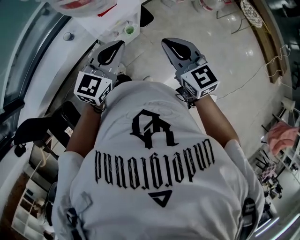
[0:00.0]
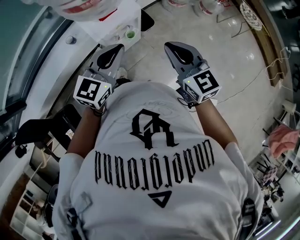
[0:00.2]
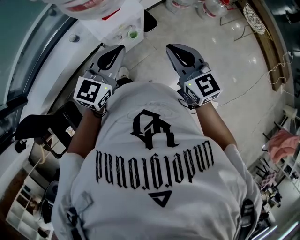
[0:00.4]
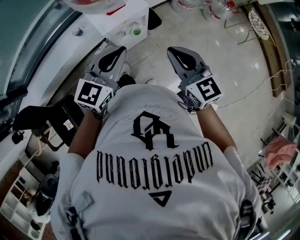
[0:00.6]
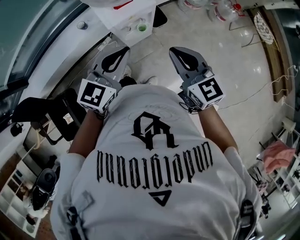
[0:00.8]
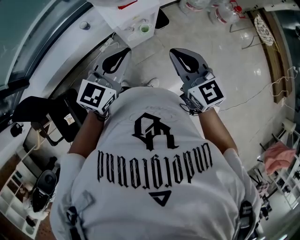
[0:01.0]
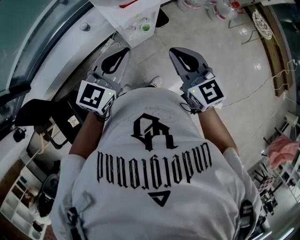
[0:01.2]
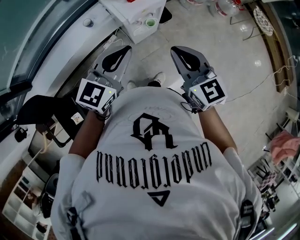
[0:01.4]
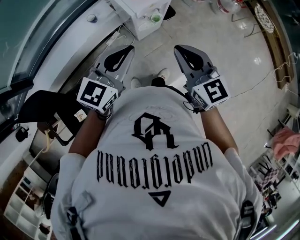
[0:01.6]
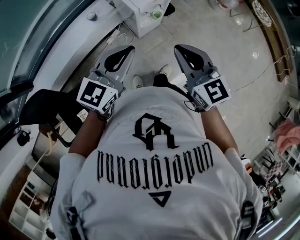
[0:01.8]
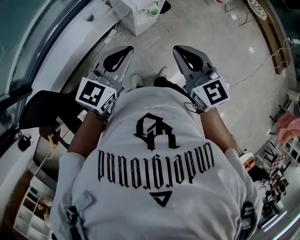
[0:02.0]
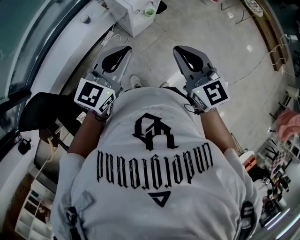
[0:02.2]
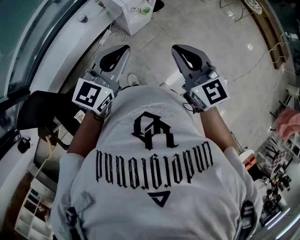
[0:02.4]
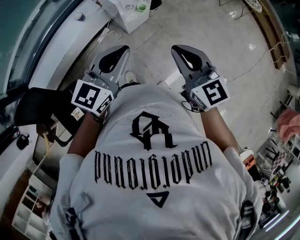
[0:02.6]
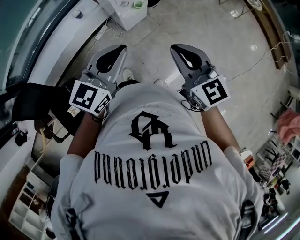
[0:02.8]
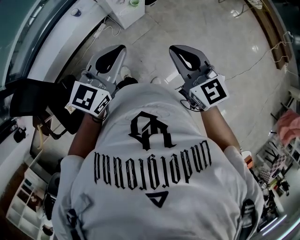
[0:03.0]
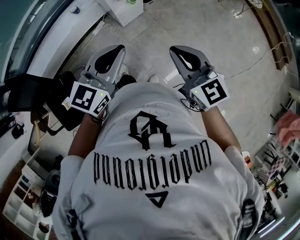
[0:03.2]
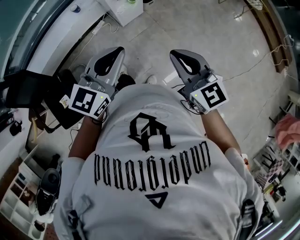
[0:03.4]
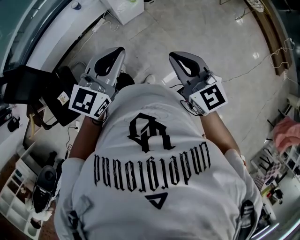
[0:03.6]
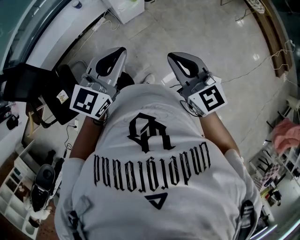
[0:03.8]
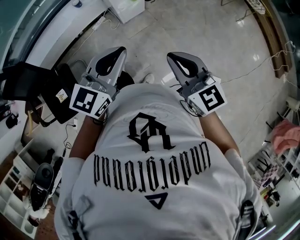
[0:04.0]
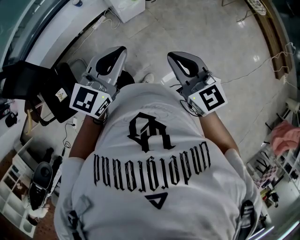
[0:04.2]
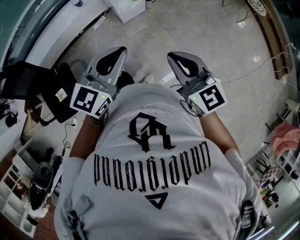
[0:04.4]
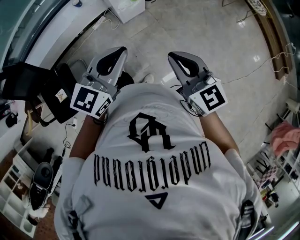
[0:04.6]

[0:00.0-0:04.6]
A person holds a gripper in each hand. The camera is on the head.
0.0 to 1.6 s: Both grippers travel together to the left and backward, some 20 cm.
1.6 to 3.0 s: Both grippers move backward and to the right, roughly 20 cm.
3.0 to 4.6 s: Both grippers move backward and to the right, approximately 10 cm.

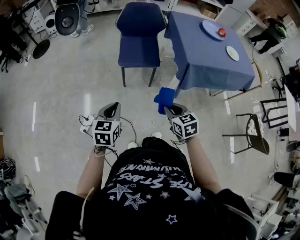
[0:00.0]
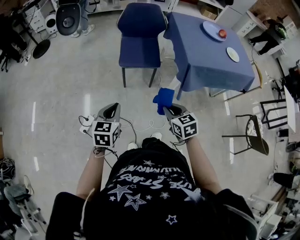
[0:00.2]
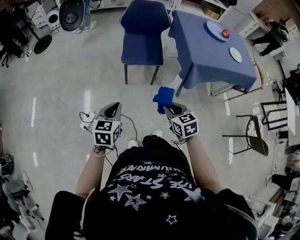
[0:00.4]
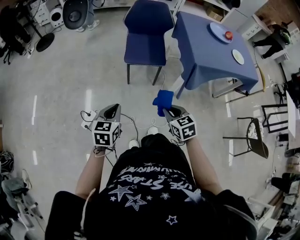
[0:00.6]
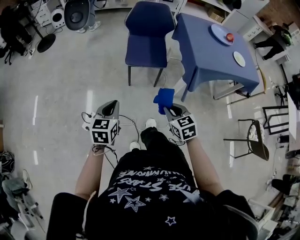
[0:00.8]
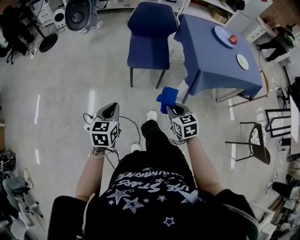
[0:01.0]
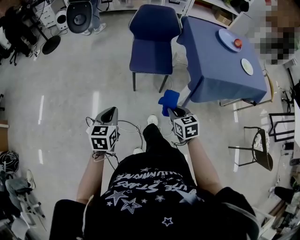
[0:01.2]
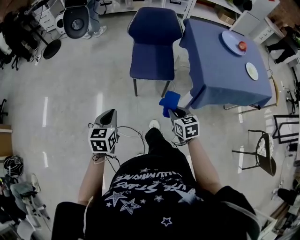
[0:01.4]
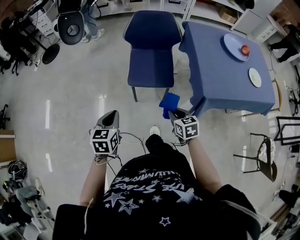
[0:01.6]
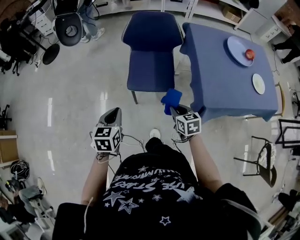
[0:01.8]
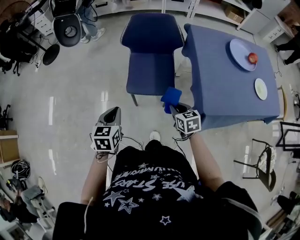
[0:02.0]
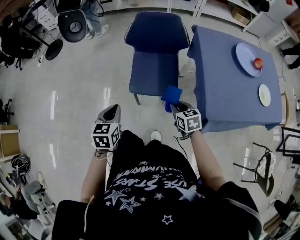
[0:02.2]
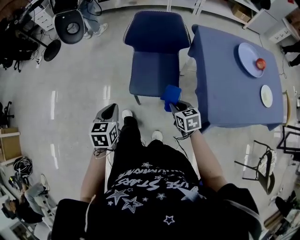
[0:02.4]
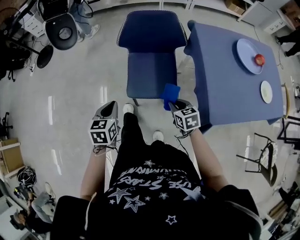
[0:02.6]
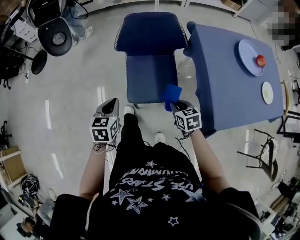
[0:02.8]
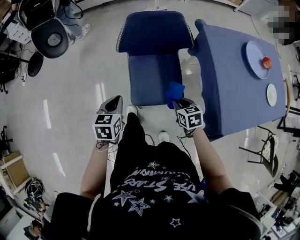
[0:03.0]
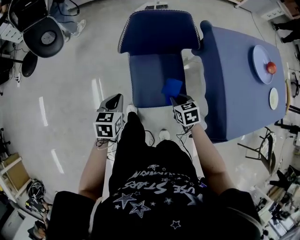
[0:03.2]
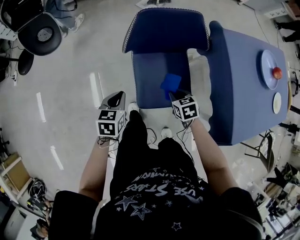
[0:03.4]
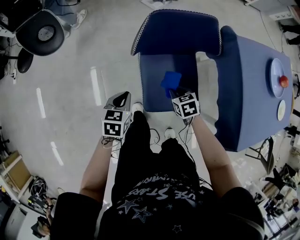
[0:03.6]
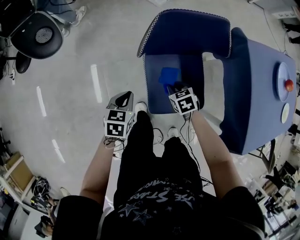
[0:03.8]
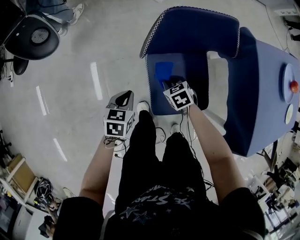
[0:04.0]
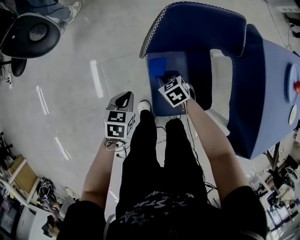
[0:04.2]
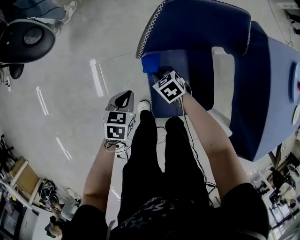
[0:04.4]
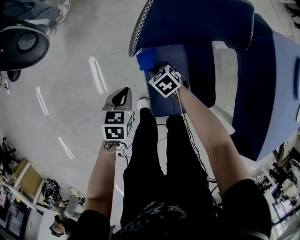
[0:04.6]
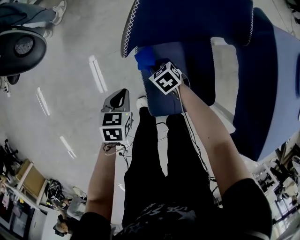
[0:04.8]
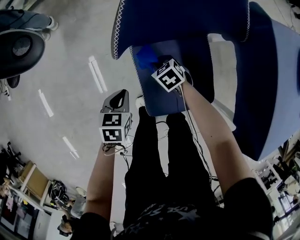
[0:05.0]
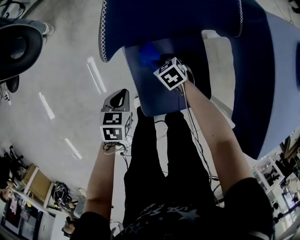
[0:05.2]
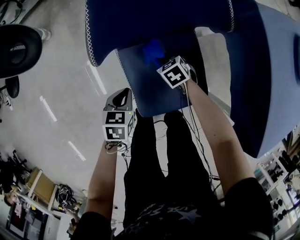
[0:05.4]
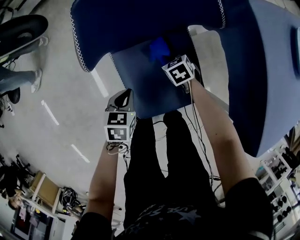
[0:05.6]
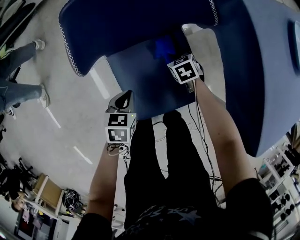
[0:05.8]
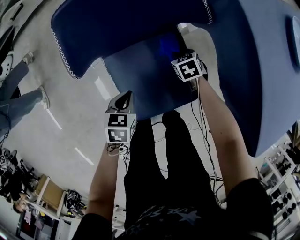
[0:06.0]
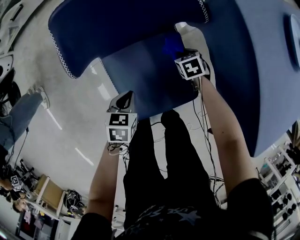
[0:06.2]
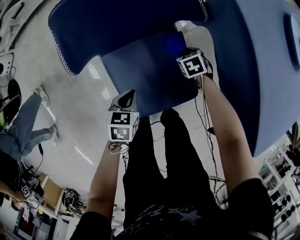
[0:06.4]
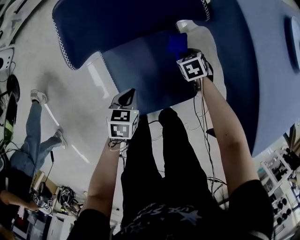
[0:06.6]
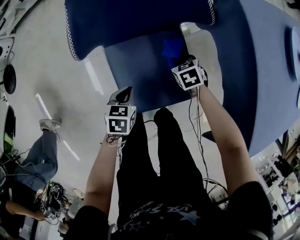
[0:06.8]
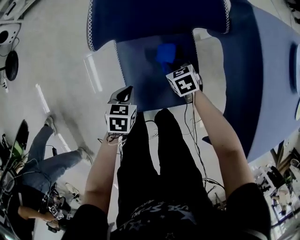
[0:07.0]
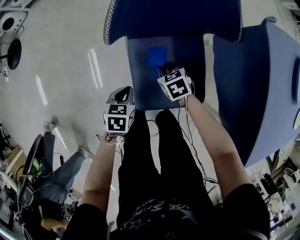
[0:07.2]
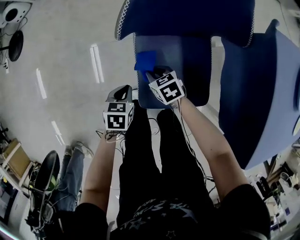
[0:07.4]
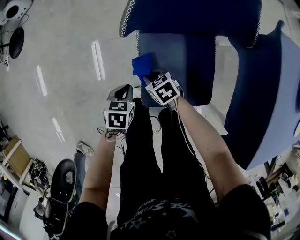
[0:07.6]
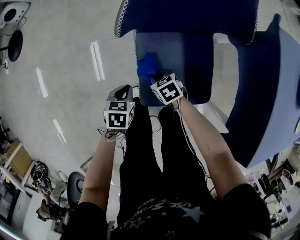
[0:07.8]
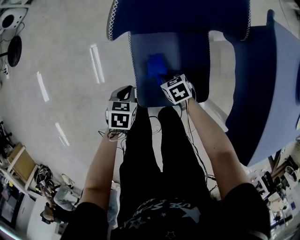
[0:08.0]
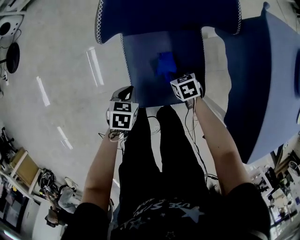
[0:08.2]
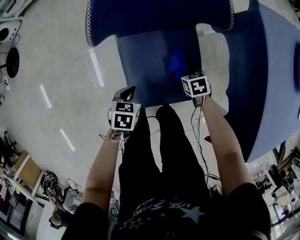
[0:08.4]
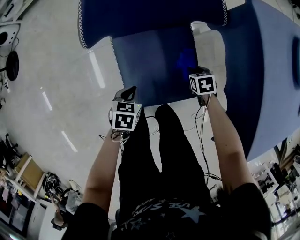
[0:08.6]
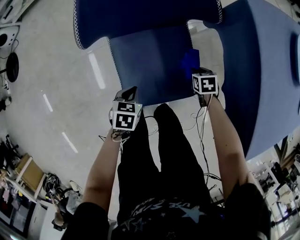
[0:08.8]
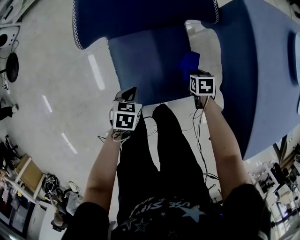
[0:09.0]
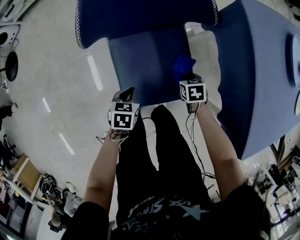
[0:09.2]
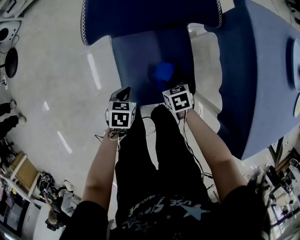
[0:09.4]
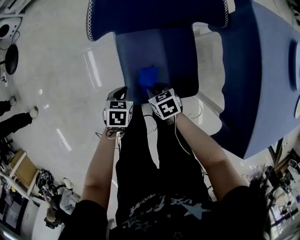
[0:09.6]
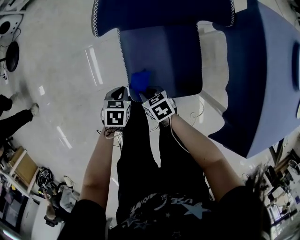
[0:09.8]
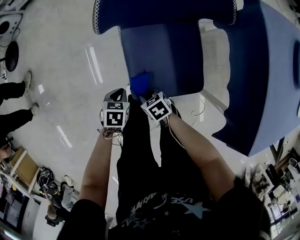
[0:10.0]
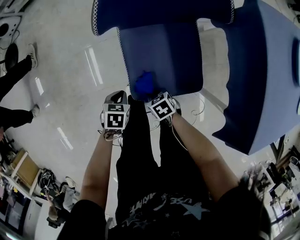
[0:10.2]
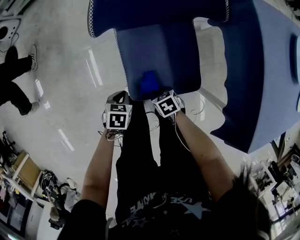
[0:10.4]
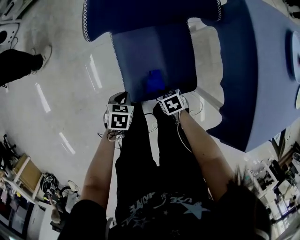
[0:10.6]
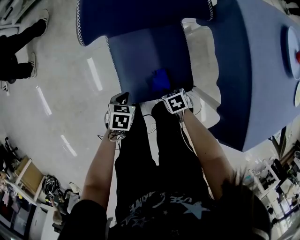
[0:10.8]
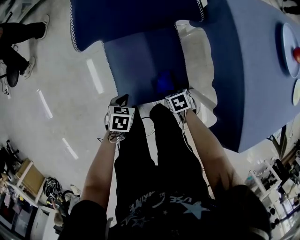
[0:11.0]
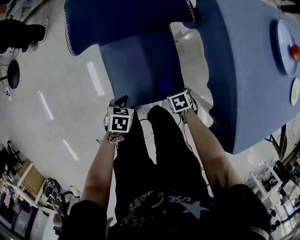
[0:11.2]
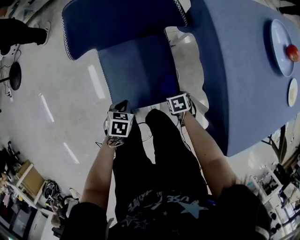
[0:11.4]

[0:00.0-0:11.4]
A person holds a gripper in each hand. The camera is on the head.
0.0 to 1.4 s: The right gripper shifts roughly 15 cm forward and downward. The left gripper shifts about 10 cm forward and to the left.
1.4 to 2.8 s: Both grippers move forward, some 30 cm.
2.8 to 4.2 s: The right gripper heads forward, to the left and downward, covering roughly 40 cm, and rotates approximately 20 degrees. The left gripper moves downward, forward and to the left, about 30 cm.
4.2 to 5.6 s: The two grippers go about 20 cm to the right.
5.6 to 7.2 s: The right gripper changes place by about 15 cm, while the left gripper moves some 5 cm.
7.2 to 8.6 s: The right gripper ends up about 20 cm from where it was, and swivels some 20 degrees, while the left gripper shifts by roughly 5 cm.
8.6 to 10.0 s: The left gripper moves approximately 10 cm, while the right gripper ends up roughly 30 cm from where it was, and changes its angle by some 30 degrees.
10.0 to 11.4 s: The right gripper shifts by roughly 30 cm, and turns by roughly 30 degrees, while the left gripper changes place by about 15 cm.

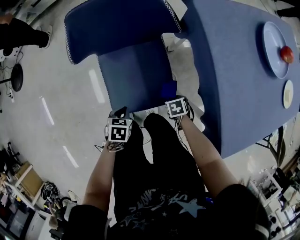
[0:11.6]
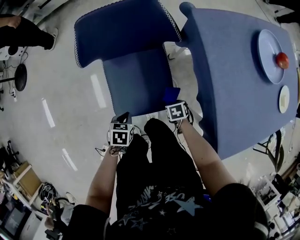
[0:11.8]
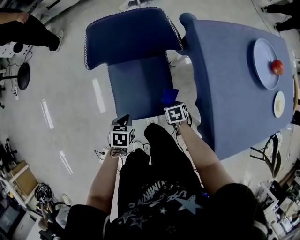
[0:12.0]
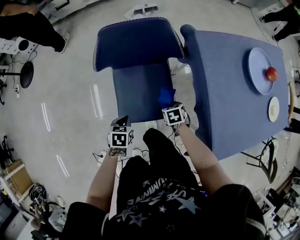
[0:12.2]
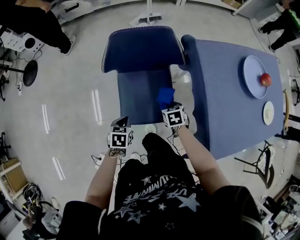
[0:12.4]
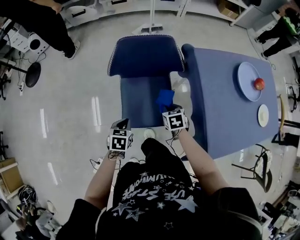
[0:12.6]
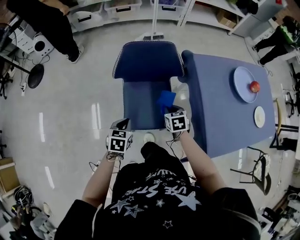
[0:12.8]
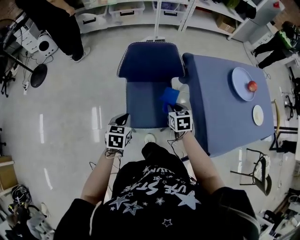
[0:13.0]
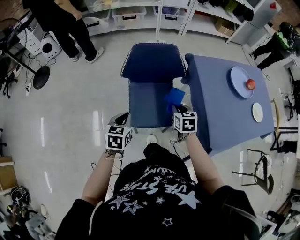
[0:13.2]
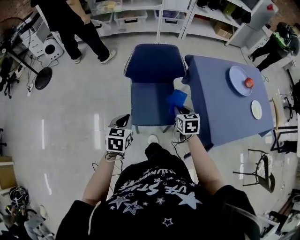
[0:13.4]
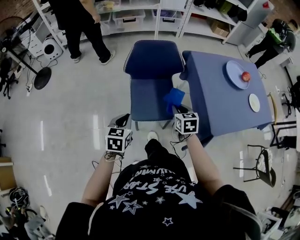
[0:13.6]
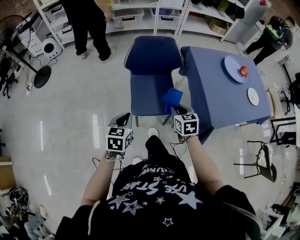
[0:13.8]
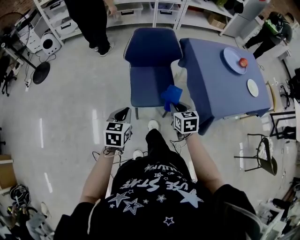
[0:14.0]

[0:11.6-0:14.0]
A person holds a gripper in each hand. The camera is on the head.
11.6 to 12.8 s: Both grippers move upward, some 20 cm. The right gripper turns by about 30 degrees. Meanwhile the left gripper changes its angle by approximately 20 degrees.
12.8 to 14.0 s: Both grippers travel together backward and upward, roughly 20 cm.

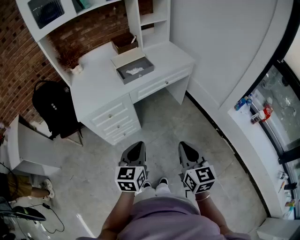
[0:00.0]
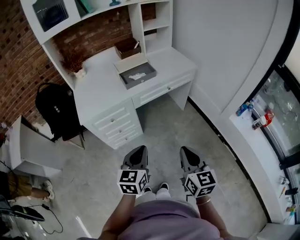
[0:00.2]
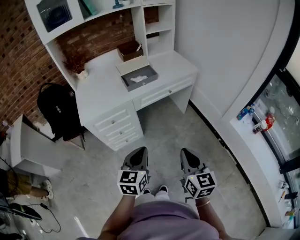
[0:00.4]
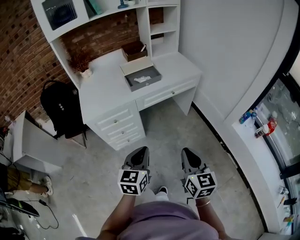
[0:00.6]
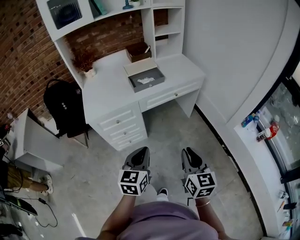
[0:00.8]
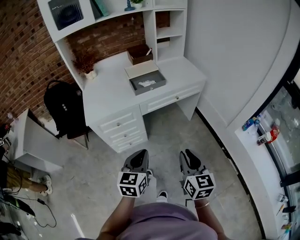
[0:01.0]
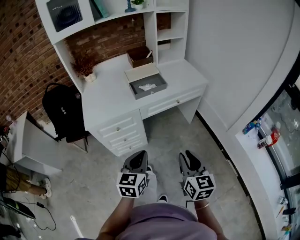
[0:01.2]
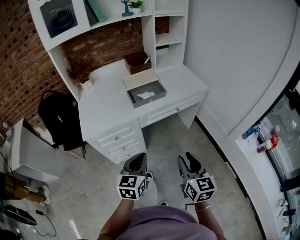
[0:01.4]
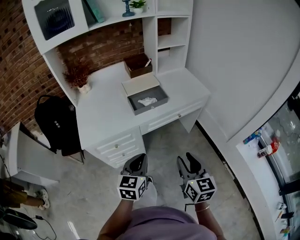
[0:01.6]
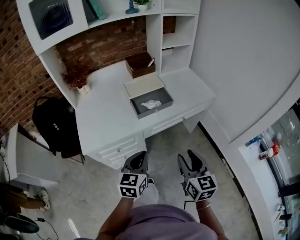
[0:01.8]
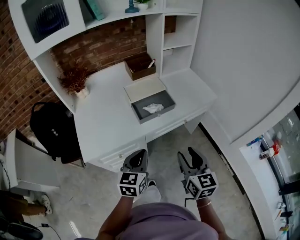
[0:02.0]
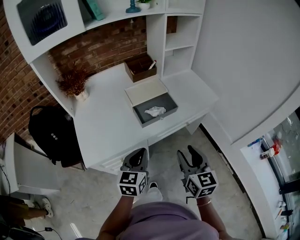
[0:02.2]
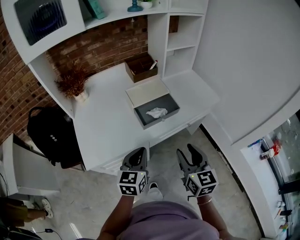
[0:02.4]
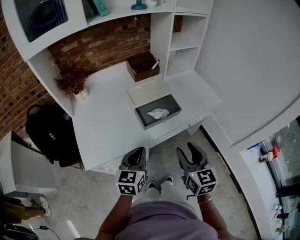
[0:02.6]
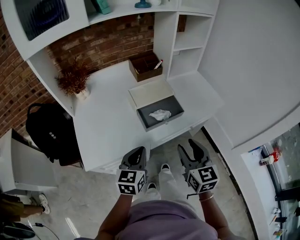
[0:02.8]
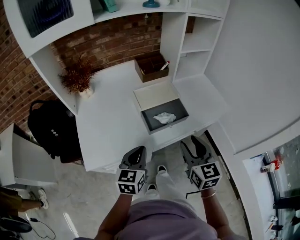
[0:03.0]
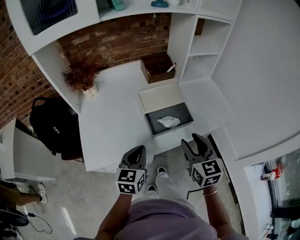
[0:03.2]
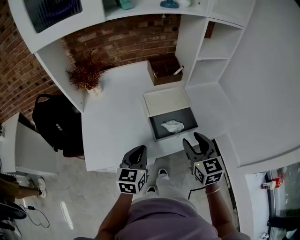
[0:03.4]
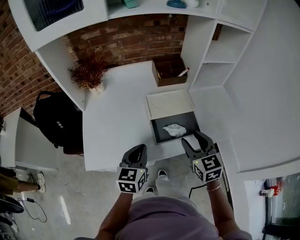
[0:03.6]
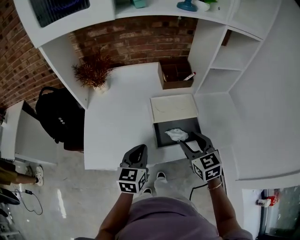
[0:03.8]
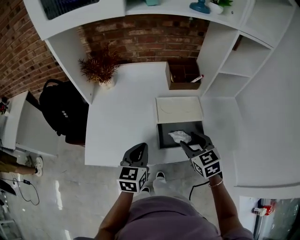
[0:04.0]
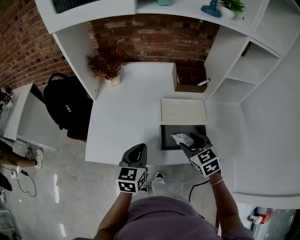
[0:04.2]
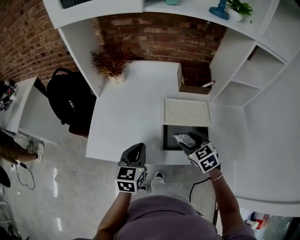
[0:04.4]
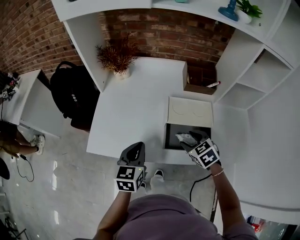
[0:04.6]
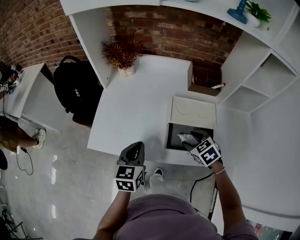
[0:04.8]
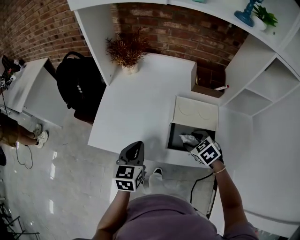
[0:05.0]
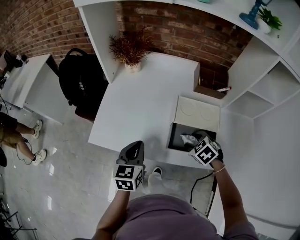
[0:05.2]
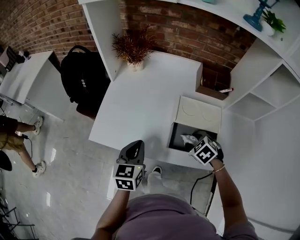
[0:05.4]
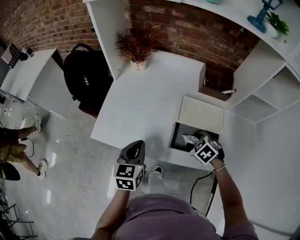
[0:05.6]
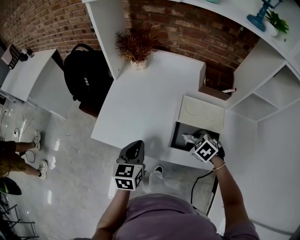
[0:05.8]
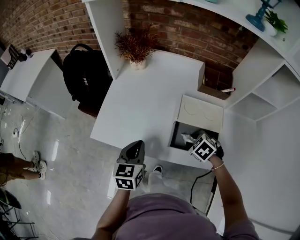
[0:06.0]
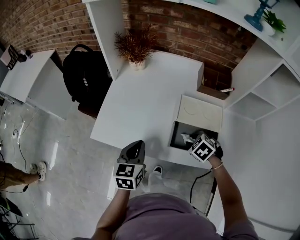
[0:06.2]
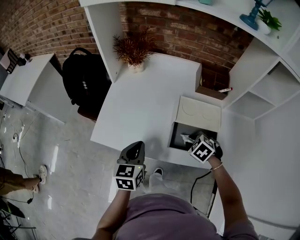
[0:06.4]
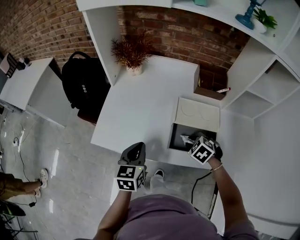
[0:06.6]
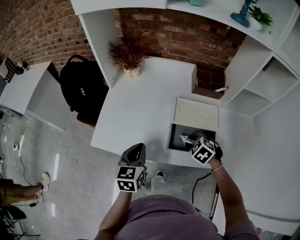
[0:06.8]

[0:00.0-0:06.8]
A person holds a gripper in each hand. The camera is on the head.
0.0 to 1.4 s: The grippers both shift forward by approximately 10 cm. The right gripper opens its fingers.
1.4 to 2.8 s: Both grippers move forward and to the left, approximately 25 cm.
2.8 to 4.0 s: The right gripper shifts about 20 cm forward, and rotates approximately 40 degrees. Meanwhile the left gripper heads forward, covering some 10 cm, and rotates roughly 20 degrees.
4.0 to 5.4 s: The right gripper goes approximately 10 cm downward, and tilts its fingers some 30 degrees downward; the left gripper travels to the left by roughly 5 cm.
5.4 to 6.8 s: The right gripper closes up.
